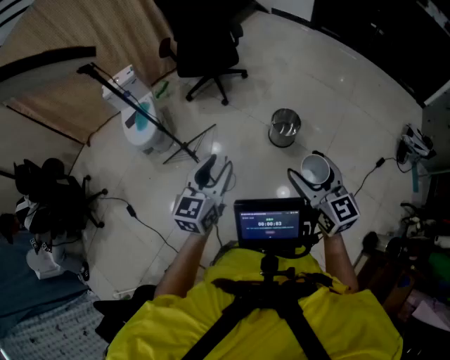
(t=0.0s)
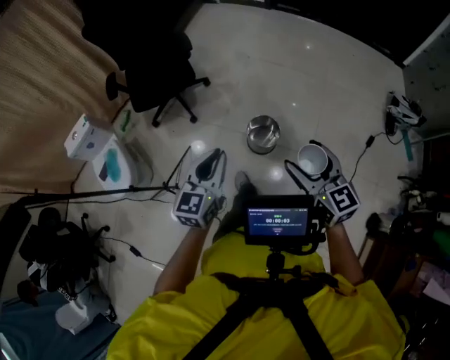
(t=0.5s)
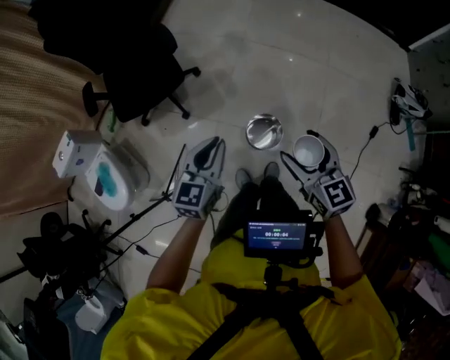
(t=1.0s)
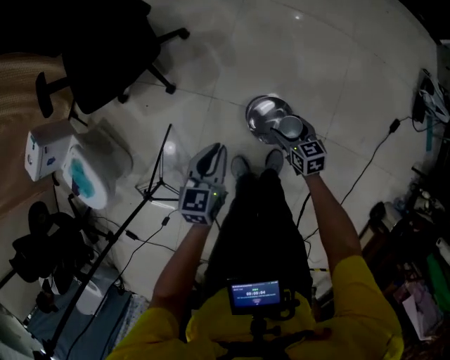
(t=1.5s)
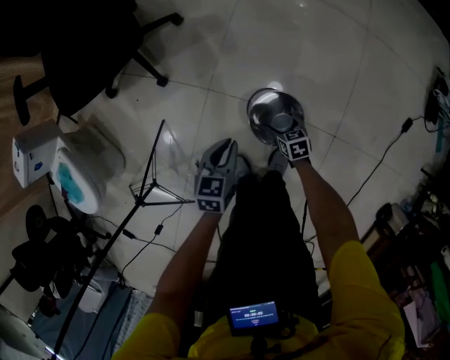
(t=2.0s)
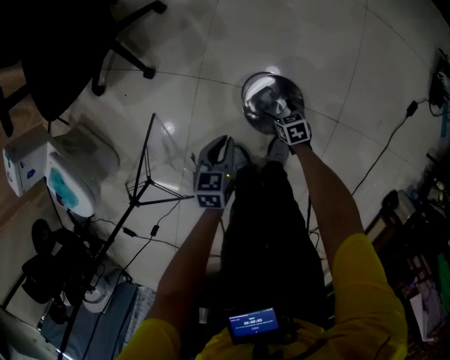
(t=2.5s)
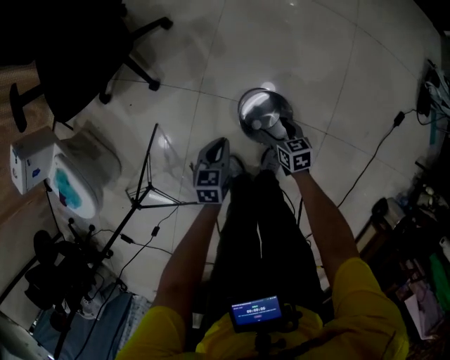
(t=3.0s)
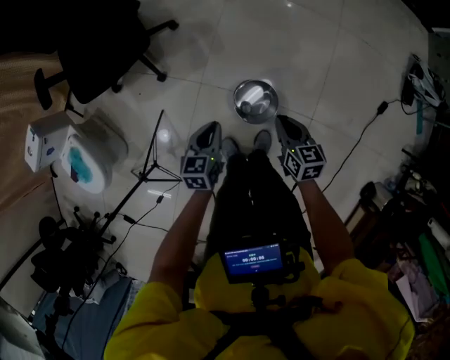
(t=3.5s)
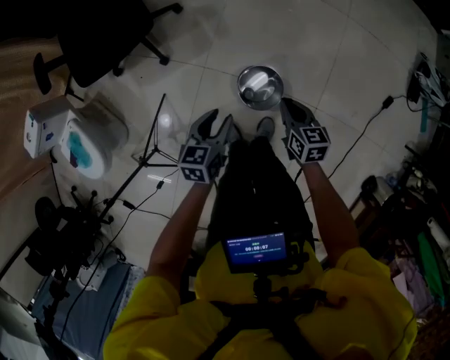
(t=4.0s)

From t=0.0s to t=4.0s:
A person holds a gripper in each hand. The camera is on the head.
From t=0.0s to t=2.0s: Both grippers are carried forward, roughly 50 cm. Both grippers travel together downward, some 70 cm. The right gripper points its fingers some 50 degrees further downward. Meanwhile the left gripper changes its angle by about 30 degrees, and closes its fingers.
From t=2.0s to t=4.0s: The left gripper heads upward, covering approximately 20 cm, and opens up, while the right gripper travels upward by some 35 cm, turns by some 20 degrees, and closes up.

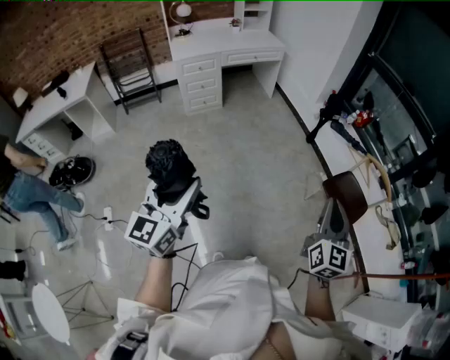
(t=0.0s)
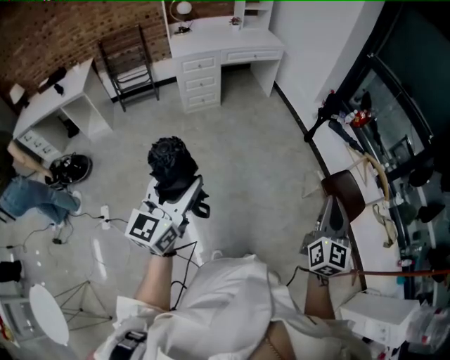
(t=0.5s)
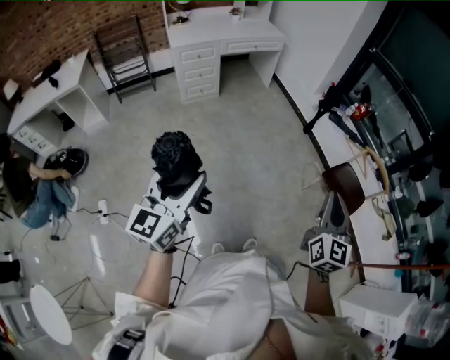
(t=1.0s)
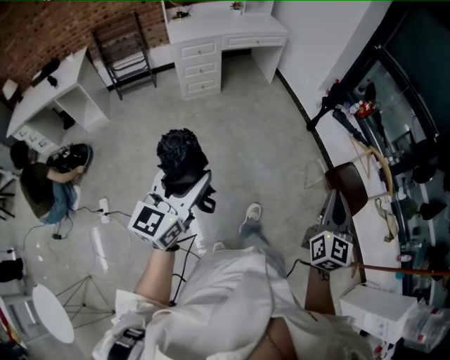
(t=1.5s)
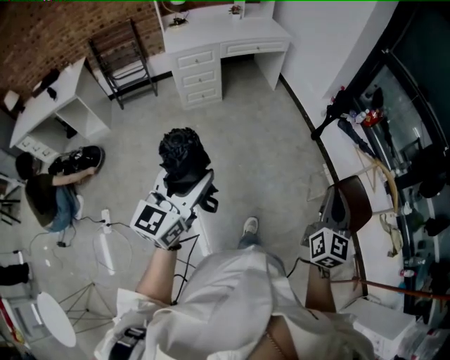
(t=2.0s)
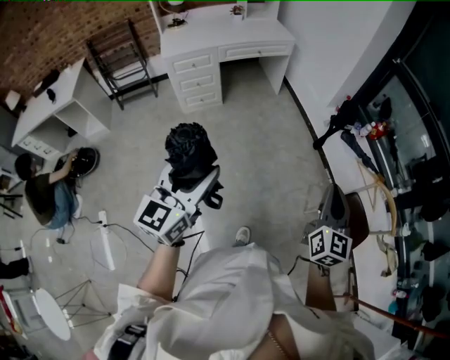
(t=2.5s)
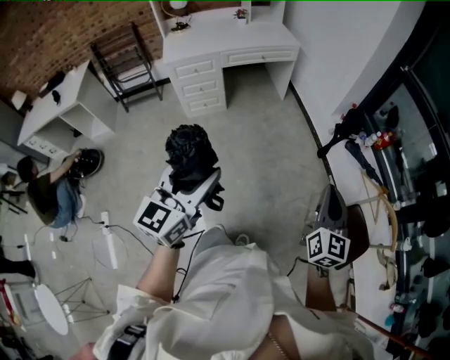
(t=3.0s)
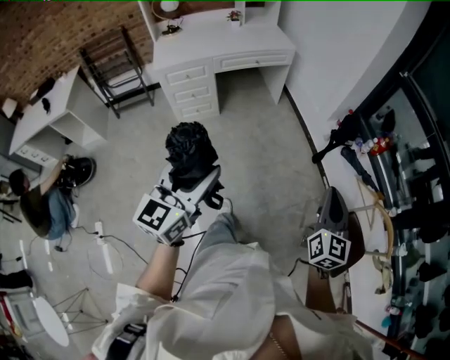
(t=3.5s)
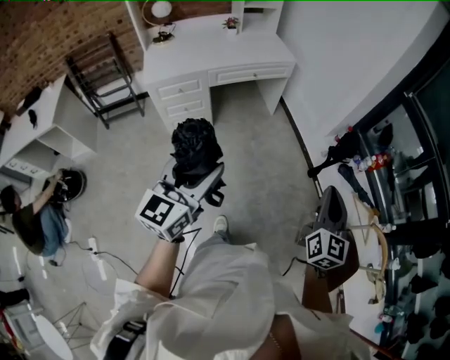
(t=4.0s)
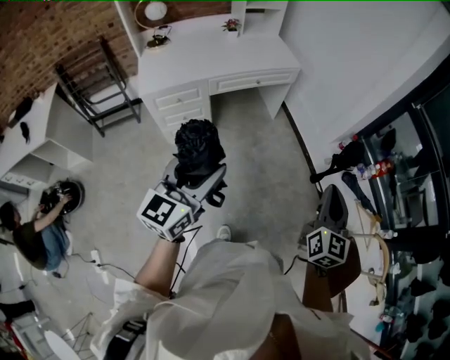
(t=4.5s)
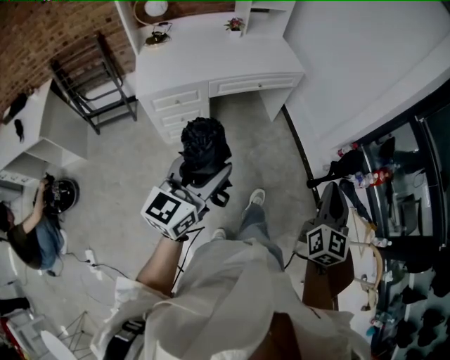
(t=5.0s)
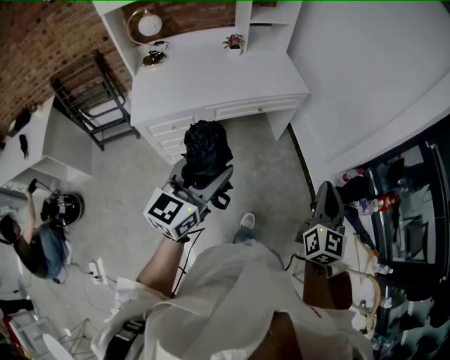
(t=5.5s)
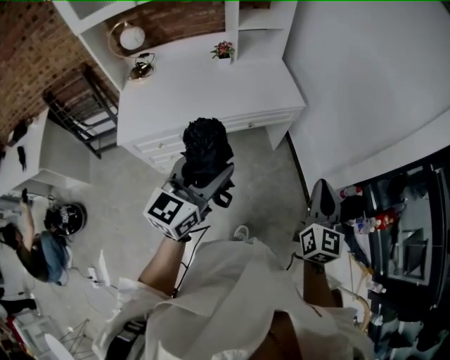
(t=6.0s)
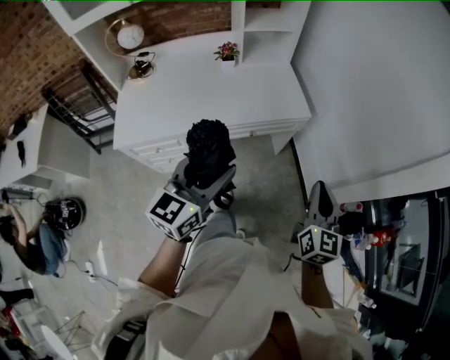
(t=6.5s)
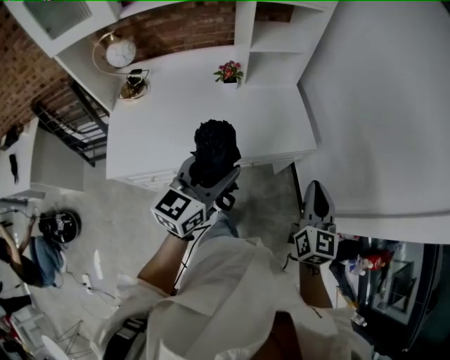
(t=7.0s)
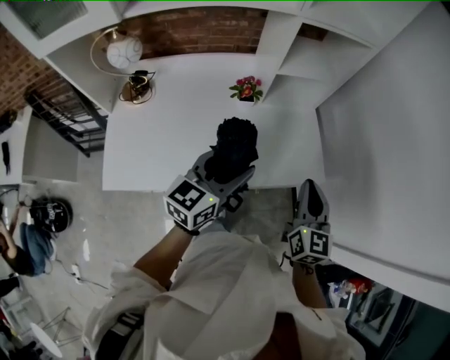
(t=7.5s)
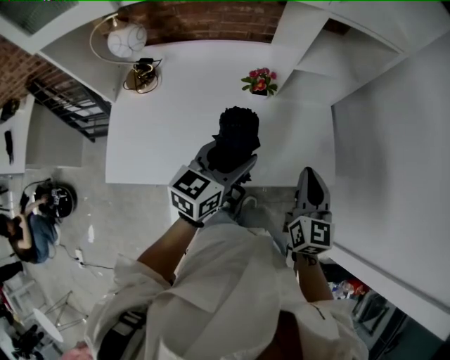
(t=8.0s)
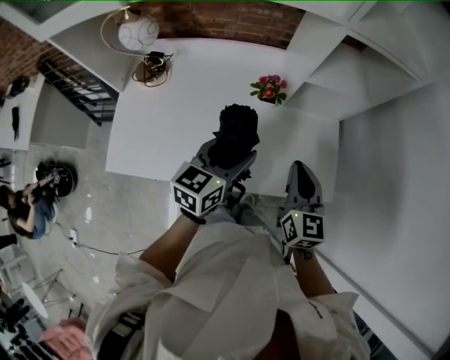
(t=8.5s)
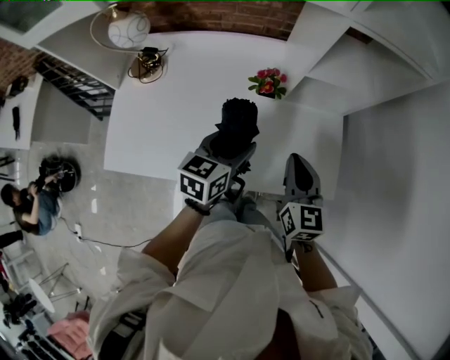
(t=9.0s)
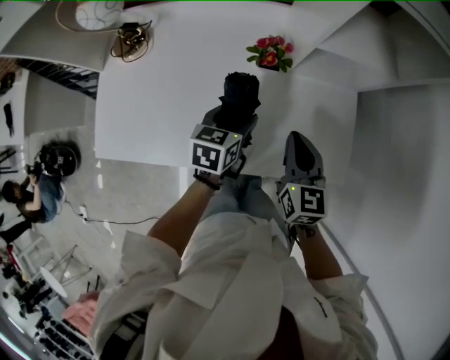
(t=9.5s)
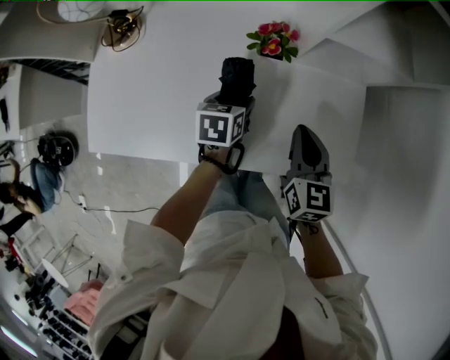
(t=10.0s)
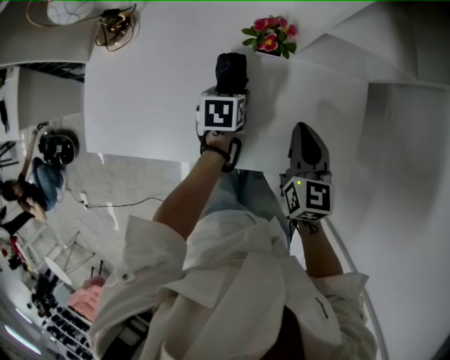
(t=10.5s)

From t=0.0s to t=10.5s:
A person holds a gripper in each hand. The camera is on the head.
From t=0.0s to t=2.0s: The two grippers go about 15 cm forward.
From t=2.0s to t=4.0s: The two grippers travel together, forward, approximately 40 cm.
From t=4.0s to t=6.5s: Both grippers are carried forward, about 60 cm.
From t=6.5s to t=8.5s: The pair of grippers is taken forward and to the left, approximately 50 cm. The left gripper changes its angle by roughly 20 degrees, while the right gripper swivels approximately 30 degrees.
From t=8.5s to t=10.5s: The left gripper moves downward, approximately 30 cm, and tilts its fingers about 40 degrees downward, while the right gripper is displaced downward and forward by some 15 cm.

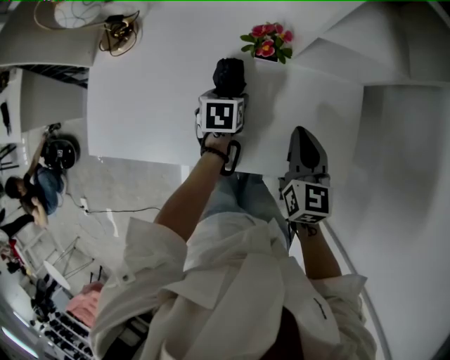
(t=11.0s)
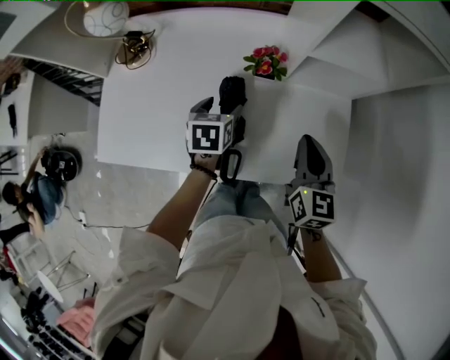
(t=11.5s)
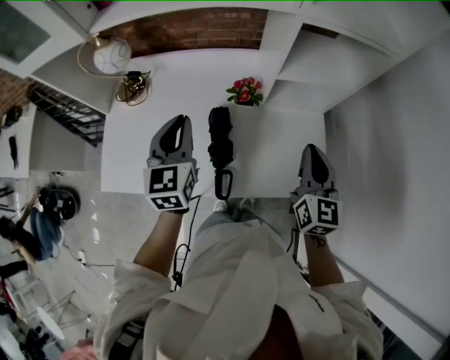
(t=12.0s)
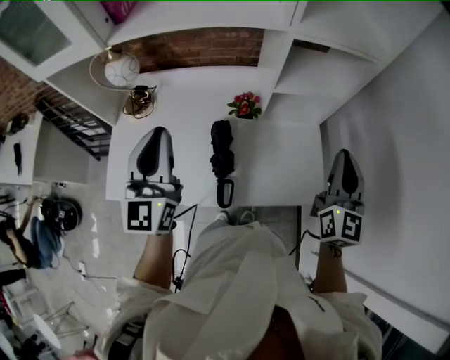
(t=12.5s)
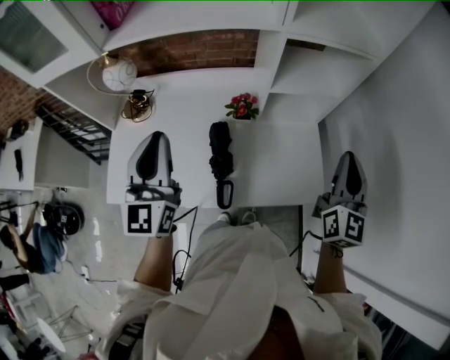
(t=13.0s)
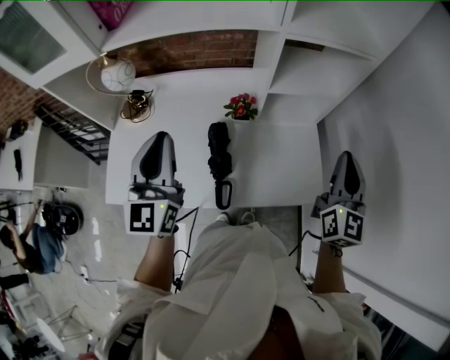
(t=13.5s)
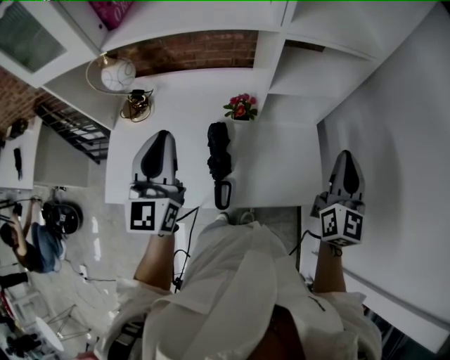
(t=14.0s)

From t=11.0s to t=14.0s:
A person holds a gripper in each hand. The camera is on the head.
From t=11.0s to t=12.5s: The left gripper travels upward by some 40 cm, tilts its fingers approximately 70 degrees upward, and closes its fingers. The right gripper moves upward, approximately 30 cm, and changes its angle by roughly 30 degrees.
From t=12.5s to t=14.0s: The grippers move only a little.

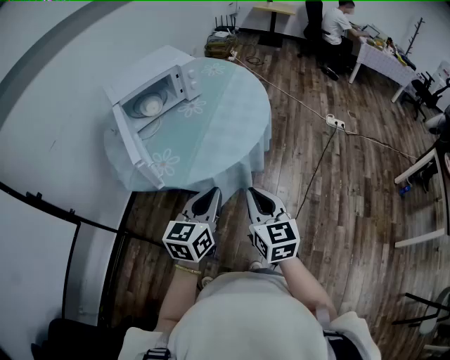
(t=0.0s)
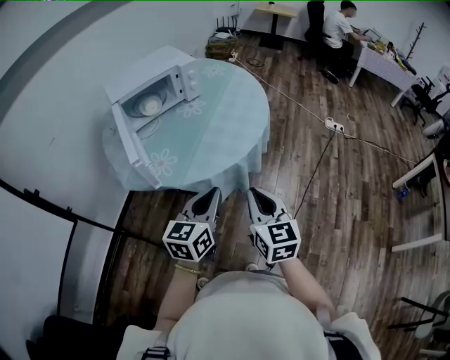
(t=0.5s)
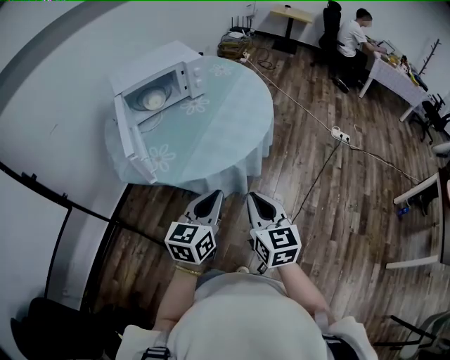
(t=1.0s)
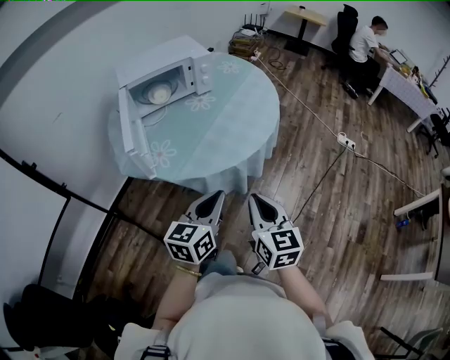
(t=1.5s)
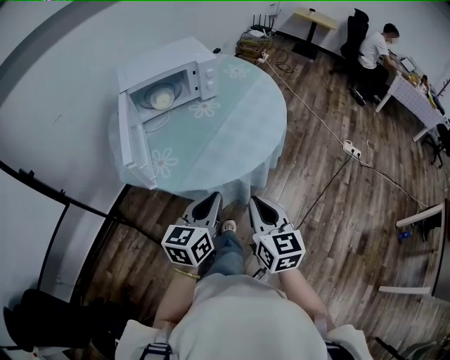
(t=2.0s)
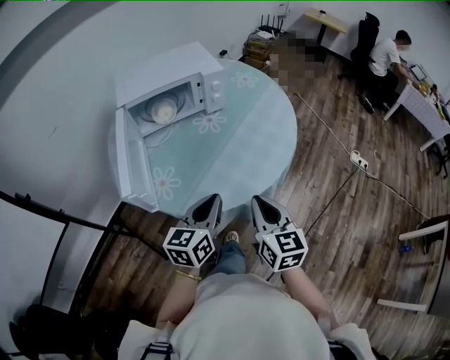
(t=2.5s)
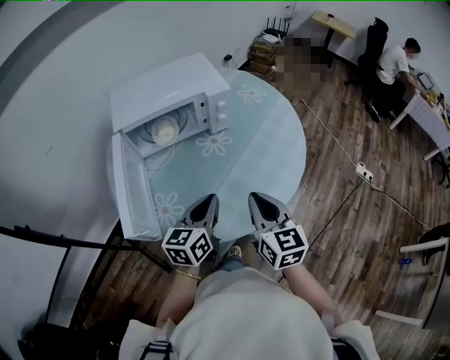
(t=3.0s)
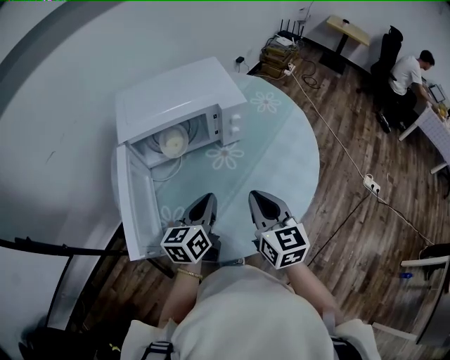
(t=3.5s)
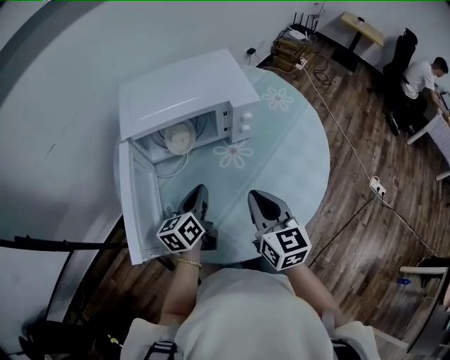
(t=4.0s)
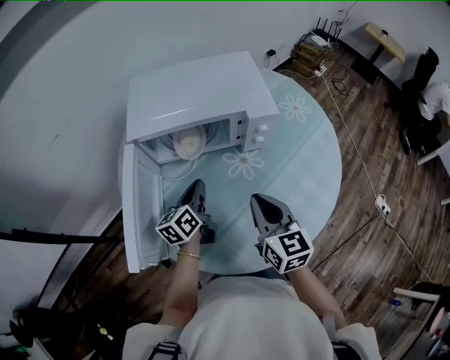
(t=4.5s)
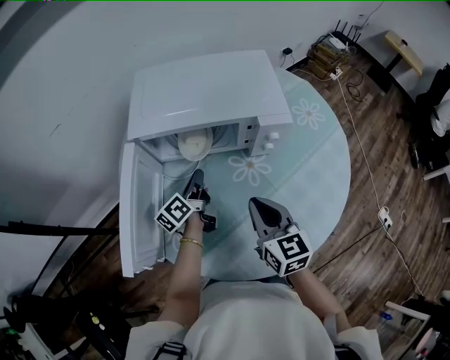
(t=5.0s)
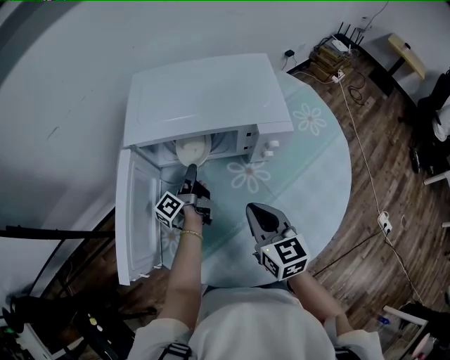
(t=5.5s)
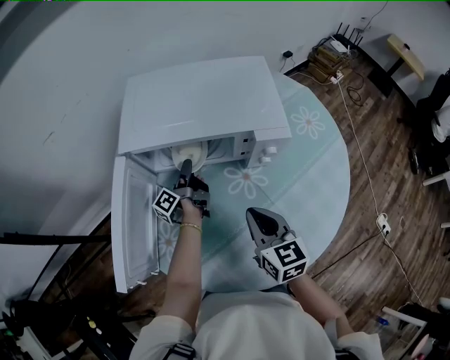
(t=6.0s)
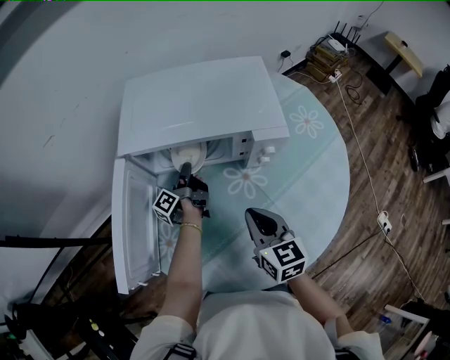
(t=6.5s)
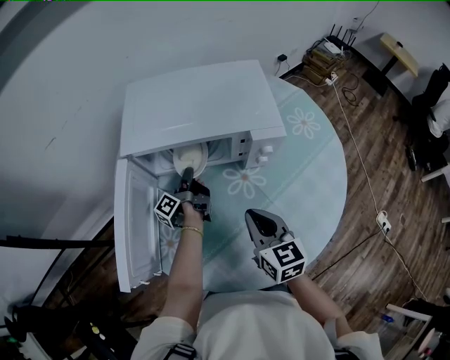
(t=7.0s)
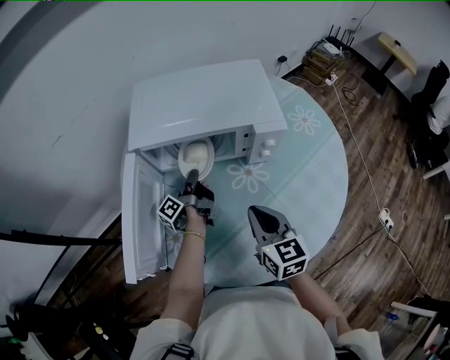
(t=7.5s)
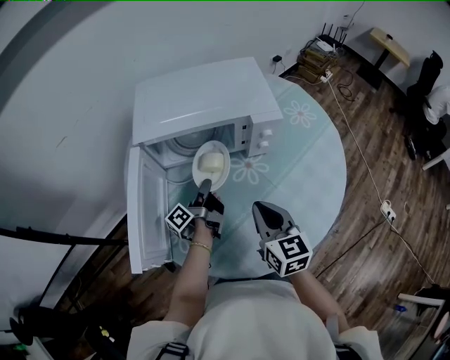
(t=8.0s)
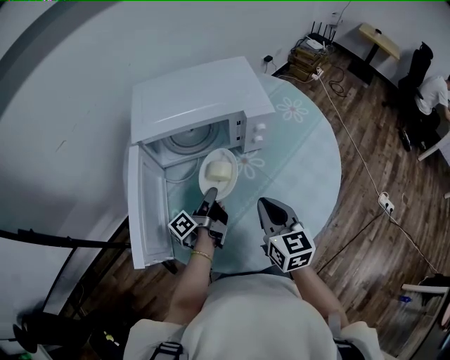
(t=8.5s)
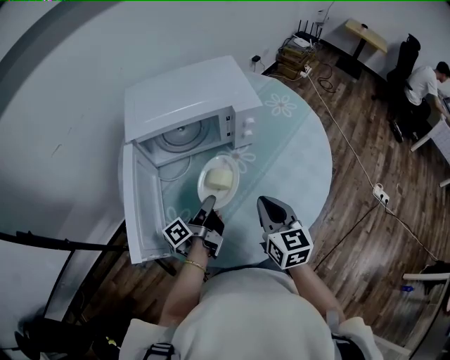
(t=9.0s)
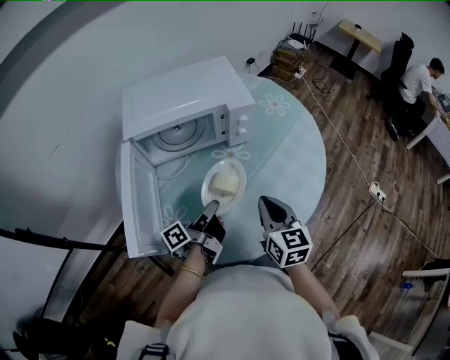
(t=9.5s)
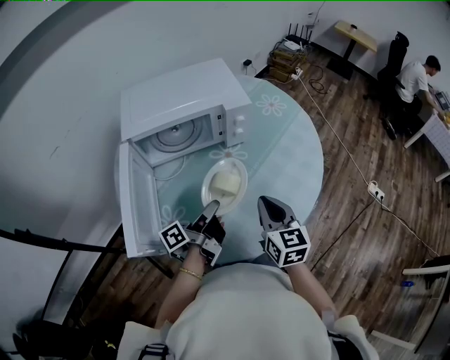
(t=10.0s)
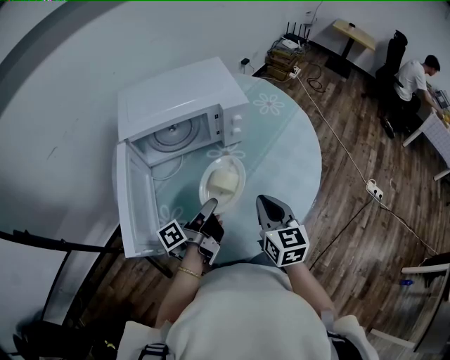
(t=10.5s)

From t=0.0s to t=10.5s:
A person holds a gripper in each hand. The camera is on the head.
From t=0.0s to t=2.0s: The two grippers go approximately 5 cm forward.
From t=2.0s to t=4.0s: Both grippers move forward, approximately 35 cm. The left gripper rotates some 30 degrees.
From t=4.0s to t=6.5s: The right gripper travels forward and downward by approximately 10 cm. Meanwhile the left gripper shifts approximately 25 cm forward and downward, twists roughly 60 degrees counterclockwise, seen from behind, and opens, then closes again.
From t=6.5s to t=8.5s: The right gripper moves backward, roughly 10 cm. The left gripper heads backward, covering approximately 15 cm, and changes its angle by approximately 20 degrees.
From t=8.5s to t=10.5s: The right gripper moves about 5 cm, while the left gripper shifts some 15 cm backward, upward and to the right.
